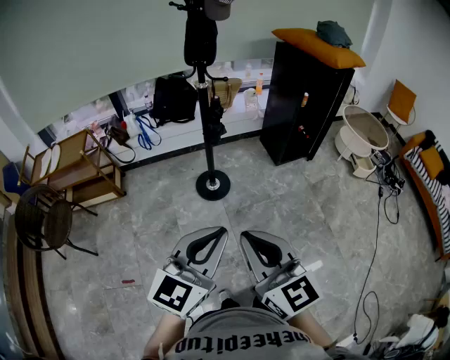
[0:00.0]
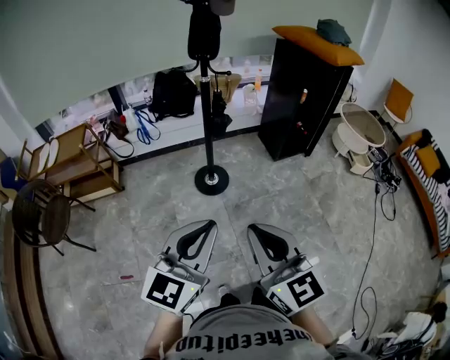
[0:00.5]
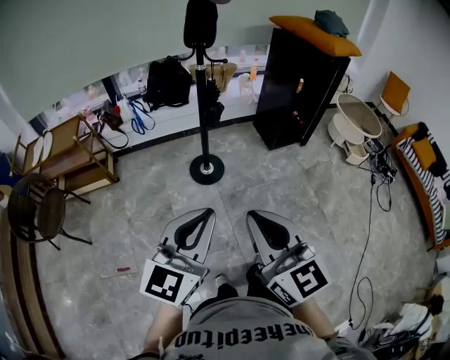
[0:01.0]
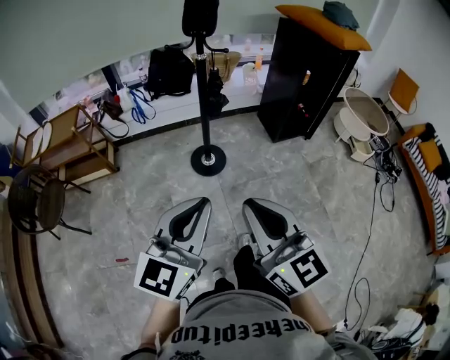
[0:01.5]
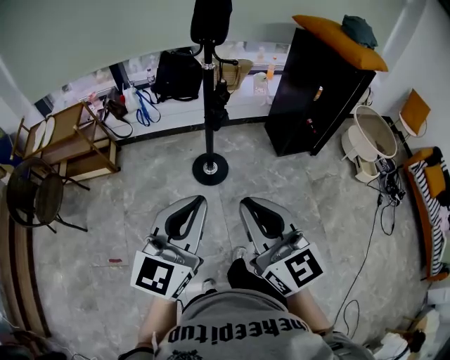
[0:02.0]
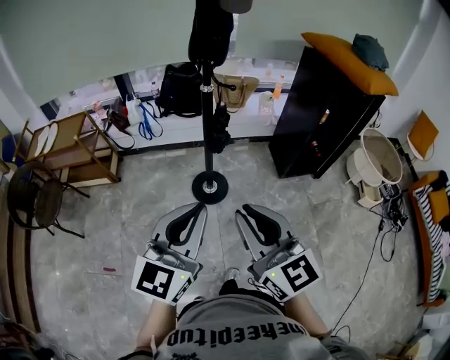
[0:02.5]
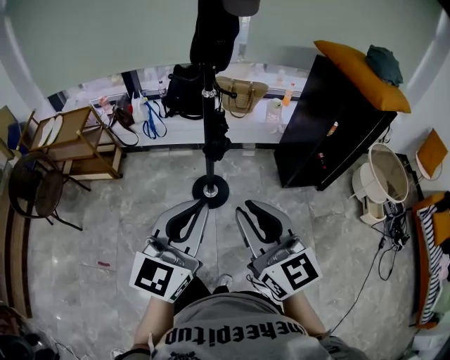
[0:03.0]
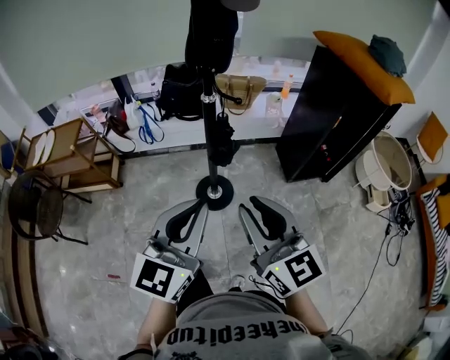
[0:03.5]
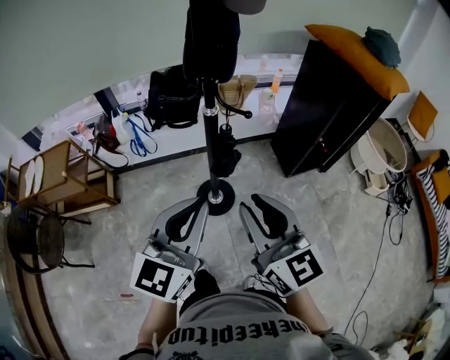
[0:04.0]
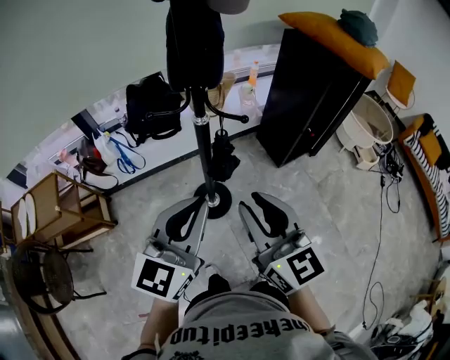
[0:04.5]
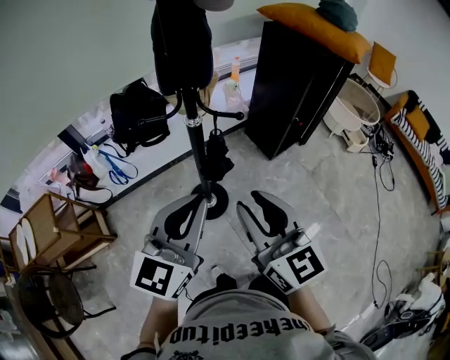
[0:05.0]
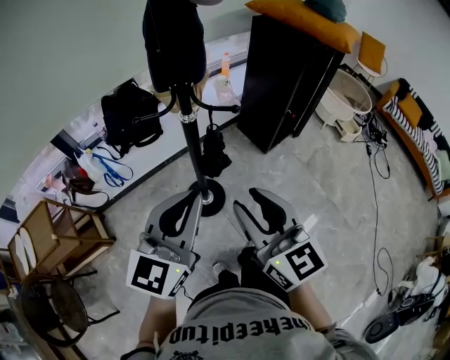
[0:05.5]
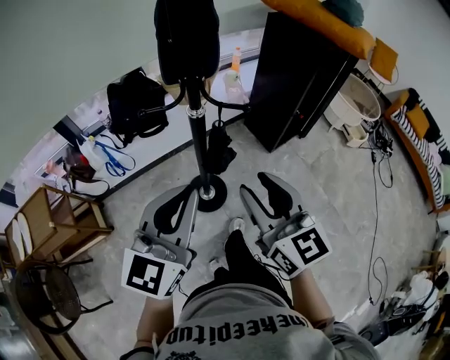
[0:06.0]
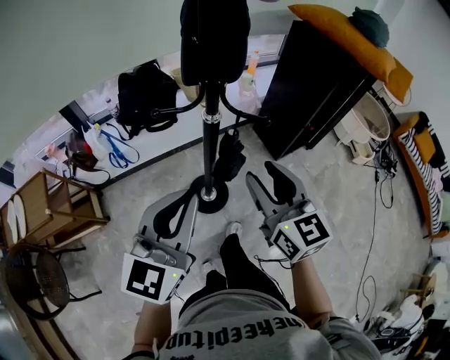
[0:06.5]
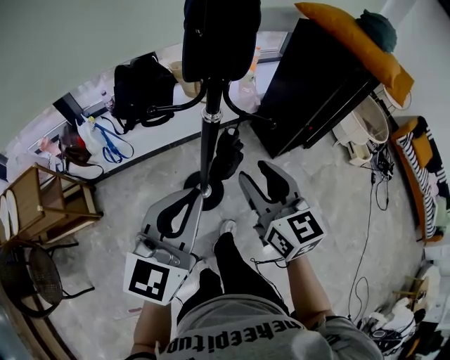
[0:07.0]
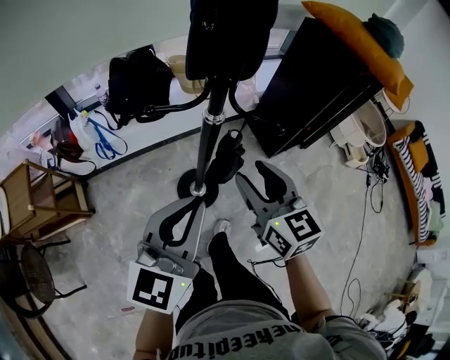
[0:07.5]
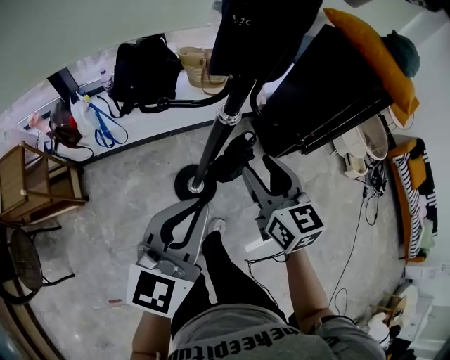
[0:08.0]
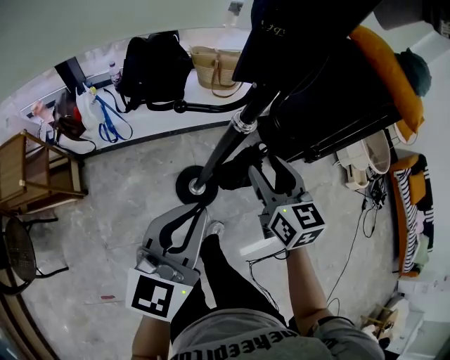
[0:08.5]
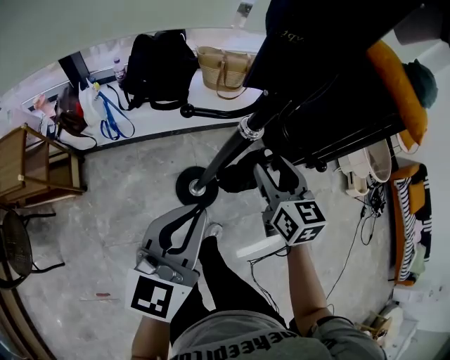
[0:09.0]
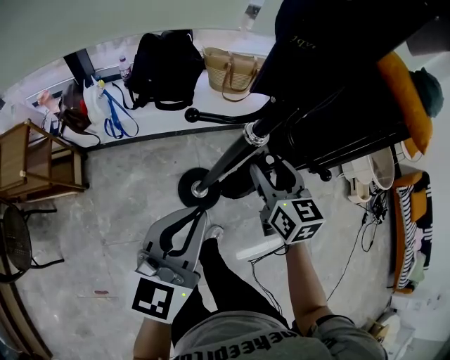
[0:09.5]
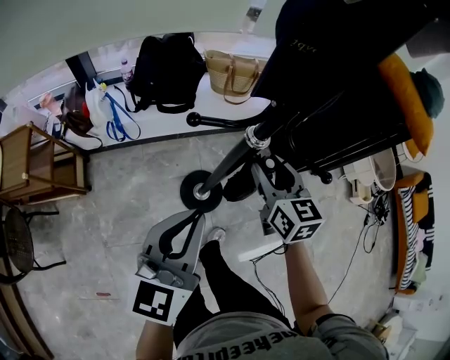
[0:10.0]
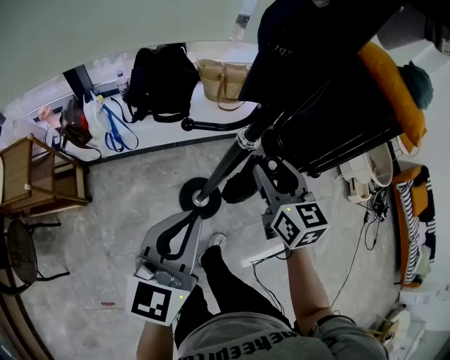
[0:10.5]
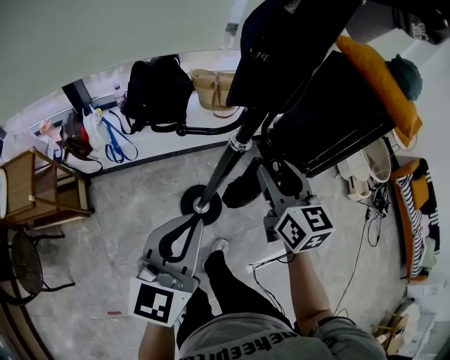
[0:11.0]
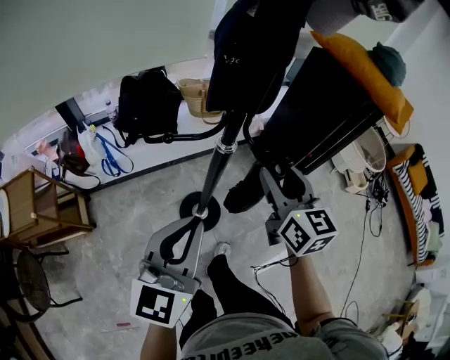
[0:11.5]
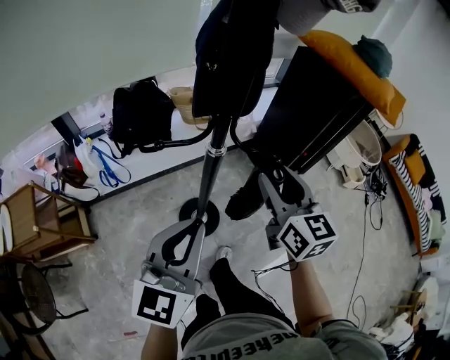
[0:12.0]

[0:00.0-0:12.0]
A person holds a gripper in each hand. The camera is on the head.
0:00.0 to 0:02.0: Both grippers move forward, about 10 cm.
0:02.0 to 0:04.0: The grippers both shift forward by roughly 25 cm.
0:04.0 to 0:06.0: The left gripper goes approximately 10 cm to the left and forward. Meanwhile the right gripper travels forward by roughly 5 cm.
0:06.0 to 0:08.0: The right gripper heads forward and downward, covering roughly 15 cm; the left gripper goes some 10 cm downward and forward.
0:08.0 to 0:10.0: The right gripper goes about 10 cm forward; the left gripper ends up roughly 5 cm from where it was.
0:10.0 to 0:12.0: The right gripper moves upward, backward and to the right, about 15 cm; the left gripper shifts roughly 5 cm upward.

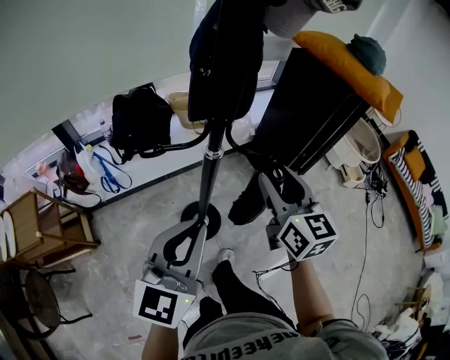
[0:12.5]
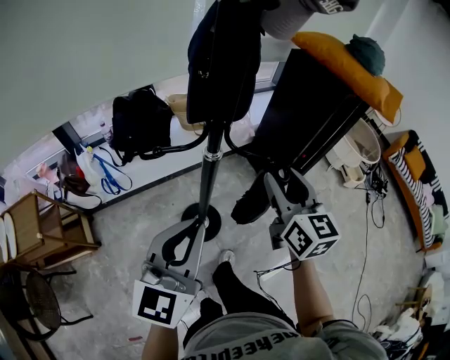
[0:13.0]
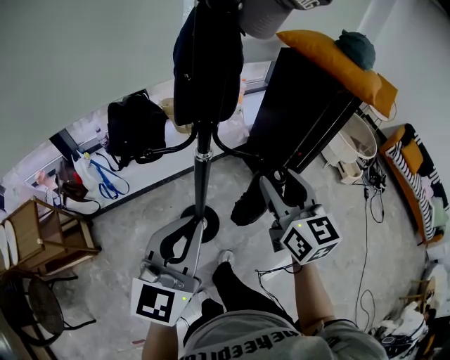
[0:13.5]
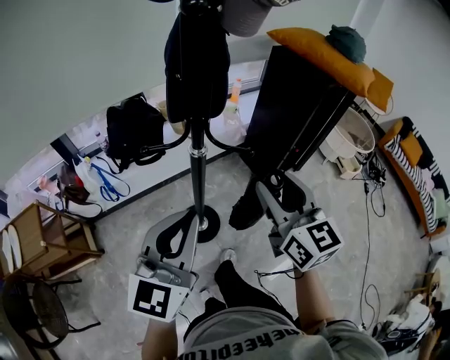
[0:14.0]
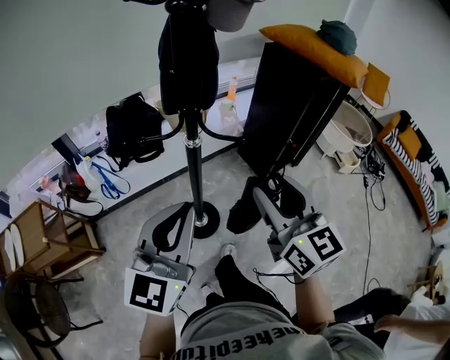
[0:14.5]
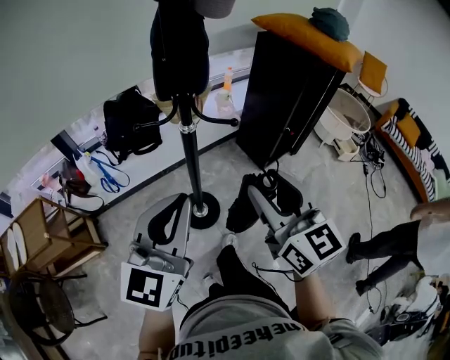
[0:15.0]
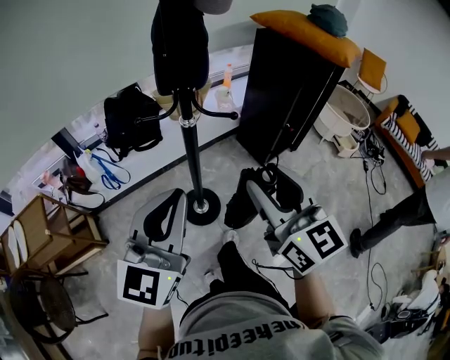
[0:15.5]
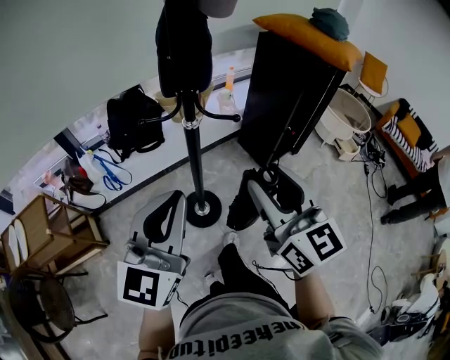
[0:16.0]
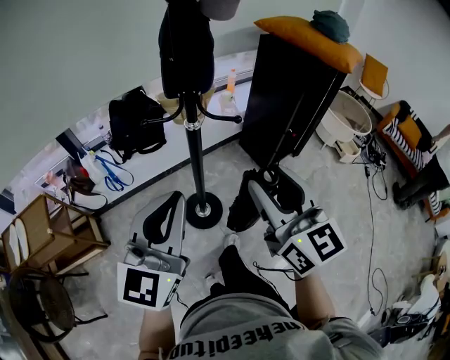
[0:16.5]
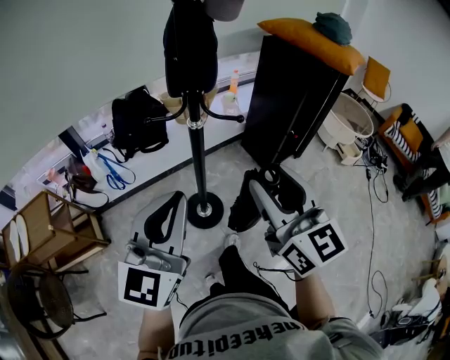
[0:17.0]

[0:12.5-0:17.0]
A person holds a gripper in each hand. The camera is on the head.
0:12.5 to 0:14.5: The right gripper goes some 10 cm backward and upward. The left gripper changes place by about 5 cm.
0:14.5 to 0:17.0: Both grippers travel together backward, about 5 cm.

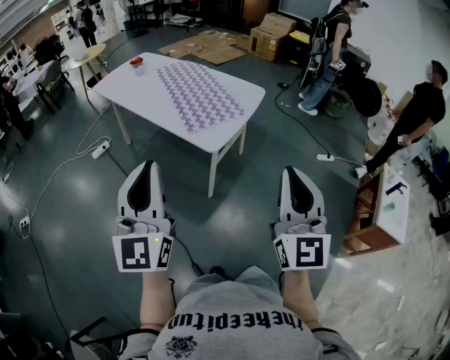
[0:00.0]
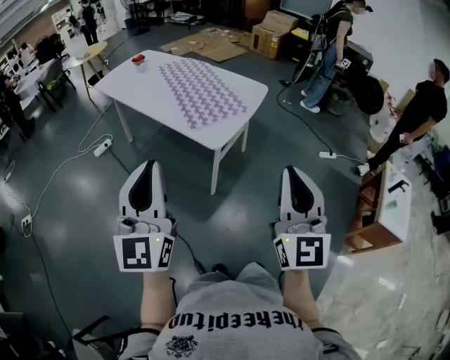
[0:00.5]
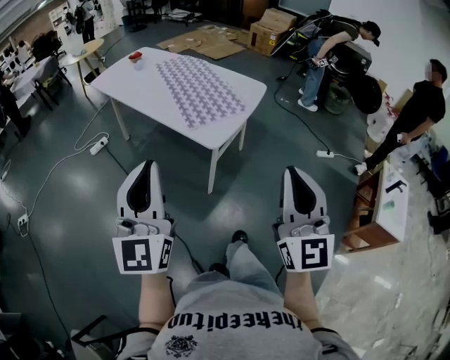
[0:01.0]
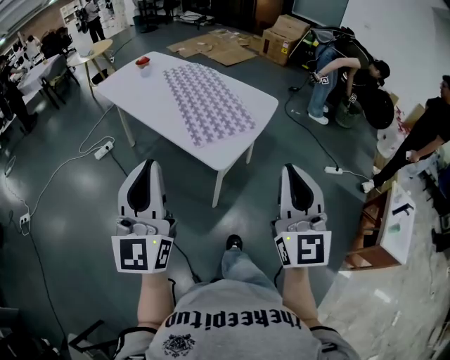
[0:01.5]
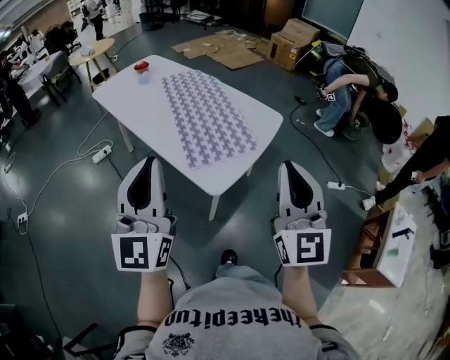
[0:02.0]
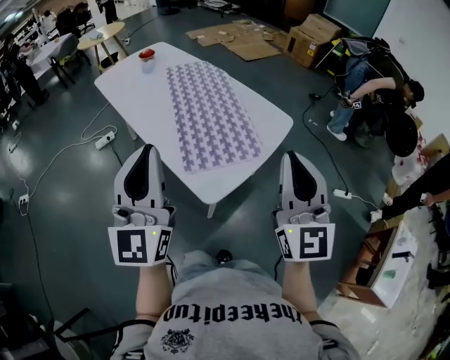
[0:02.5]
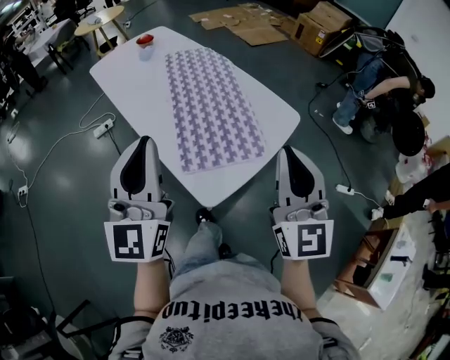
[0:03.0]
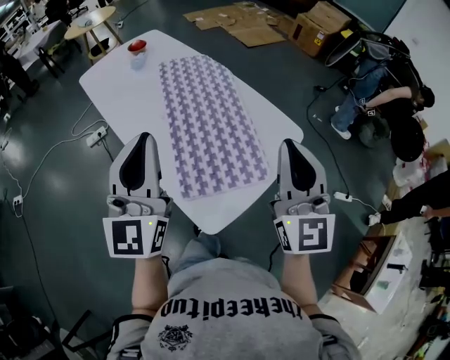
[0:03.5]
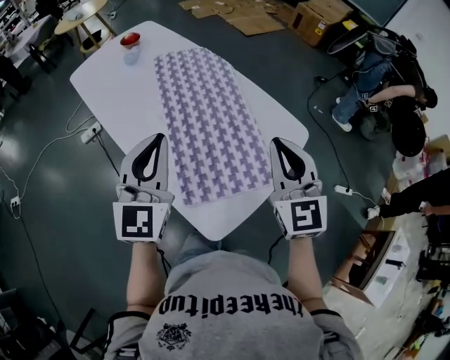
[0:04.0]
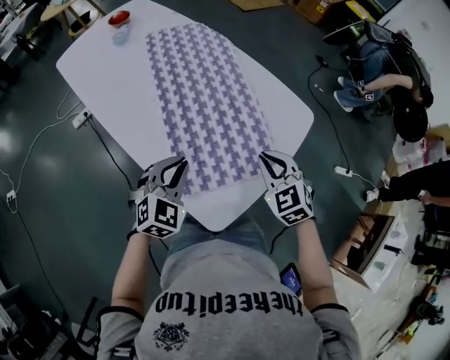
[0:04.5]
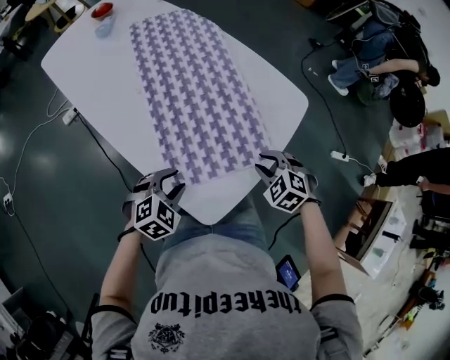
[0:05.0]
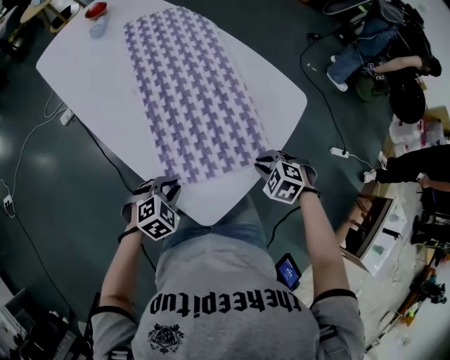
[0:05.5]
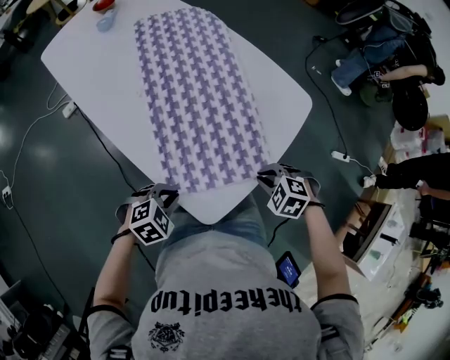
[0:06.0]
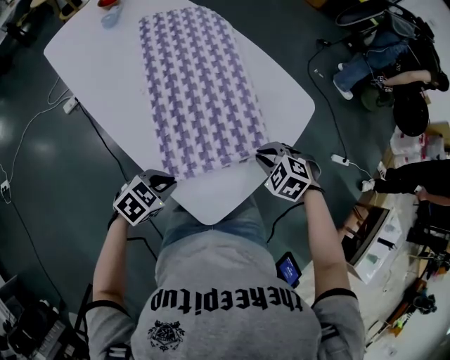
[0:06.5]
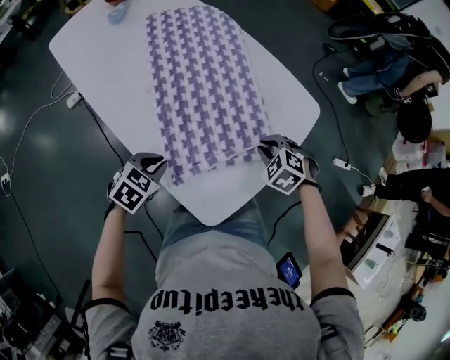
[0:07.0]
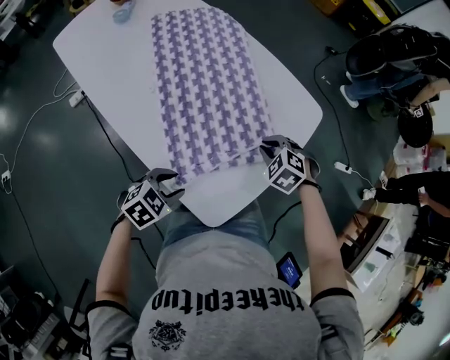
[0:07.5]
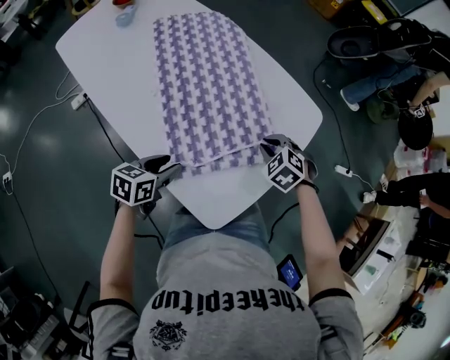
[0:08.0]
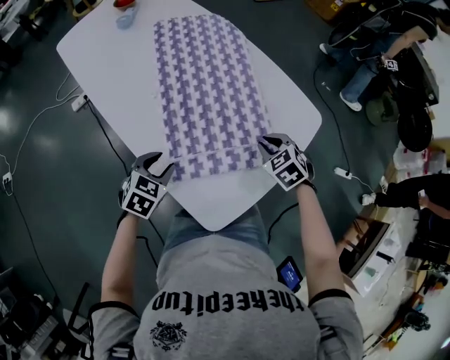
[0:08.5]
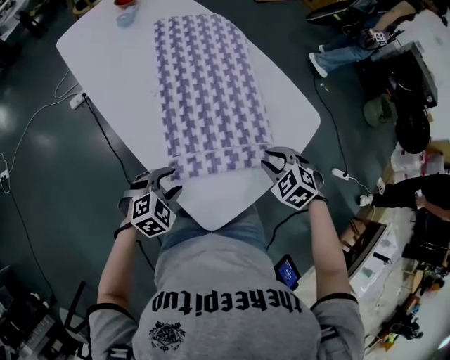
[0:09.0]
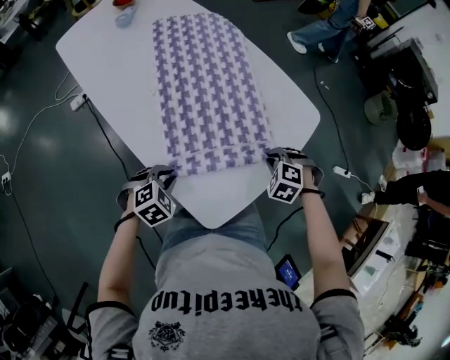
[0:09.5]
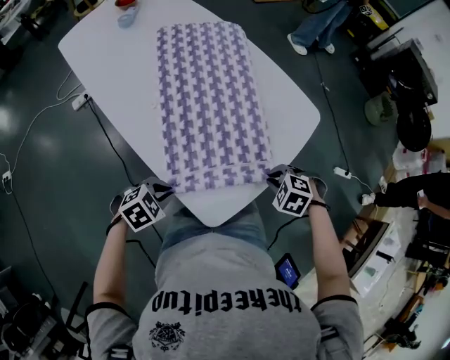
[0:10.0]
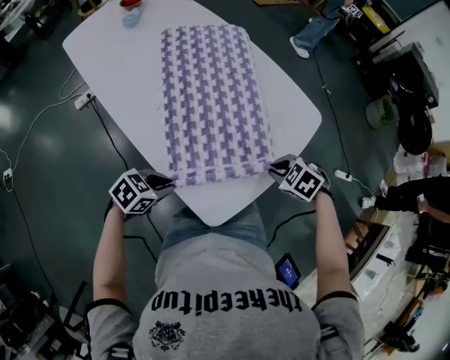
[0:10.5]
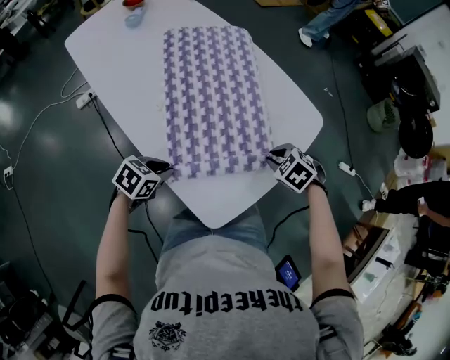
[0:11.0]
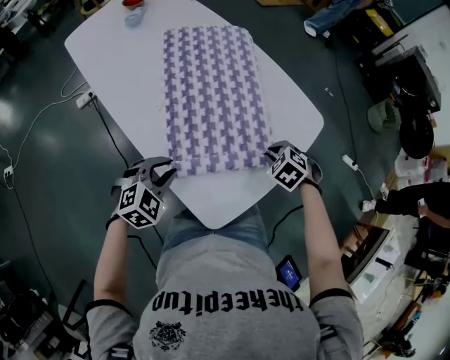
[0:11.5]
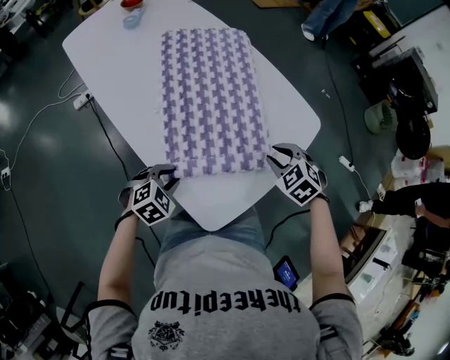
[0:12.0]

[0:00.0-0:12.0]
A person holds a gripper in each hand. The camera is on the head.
0:00.0 to 0:02.0: The grippers both shift forward by some 25 cm.
0:02.0 to 0:04.0: The grippers both shift forward by approximately 35 cm. The right gripper turns by some 20 degrees.
0:04.0 to 0:06.0: The two grippers go roughly 30 cm downward. The right gripper tips its fingers downward by about 60 degrees. The left gripper tilts its fingers approximately 60 degrees downward, and opens and closes again.
0:06.0 to 0:08.0: The left gripper moves forward and backward over about 10 cm, changing direction 2 times, twists about 50 degrees counterclockwise, seen from behind, and opens up. The right gripper heads forward and to the left, covering approximately 15 cm.
0:08.0 to 0:10.0: The left gripper ends up approximately 5 cm from where it was, rotates roughly 50 degrees, and closes up, while the right gripper changes place by some 5 cm, and swivels about 20 degrees.
0:10.0 to 0:12.0: The right gripper shifts by some 10 cm, and changes its angle by about 20 degrees.
